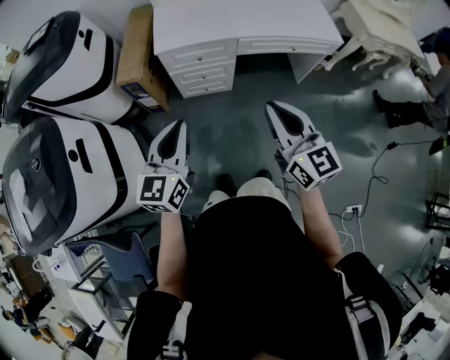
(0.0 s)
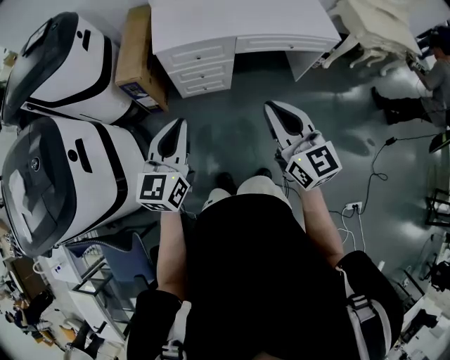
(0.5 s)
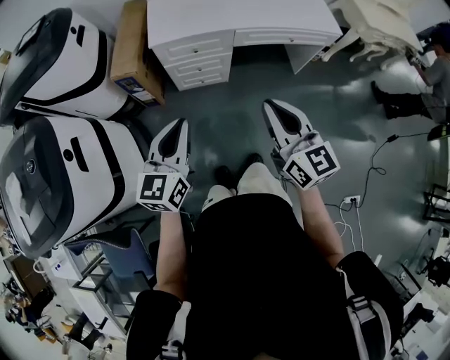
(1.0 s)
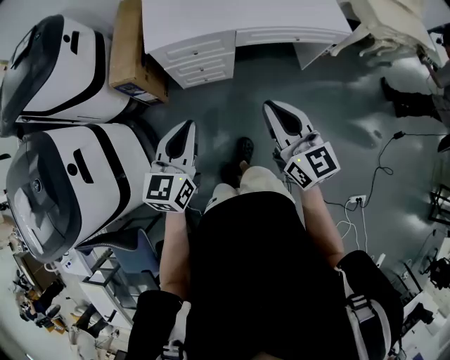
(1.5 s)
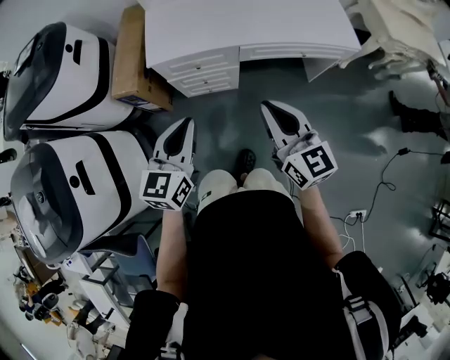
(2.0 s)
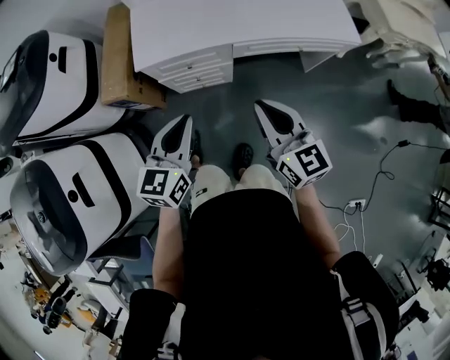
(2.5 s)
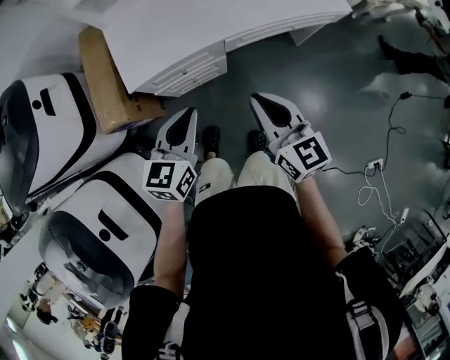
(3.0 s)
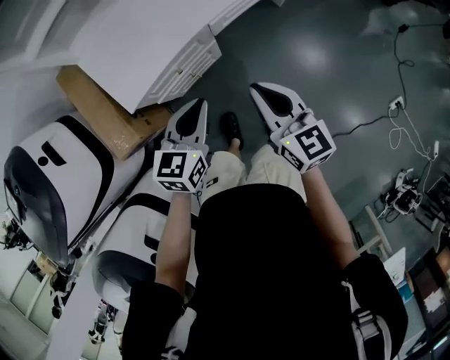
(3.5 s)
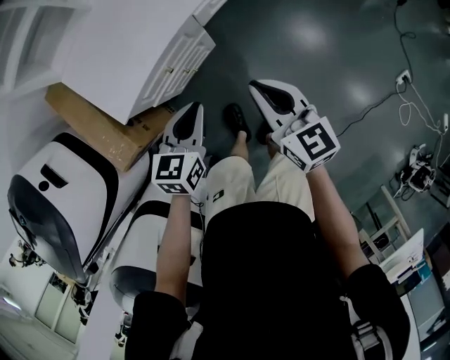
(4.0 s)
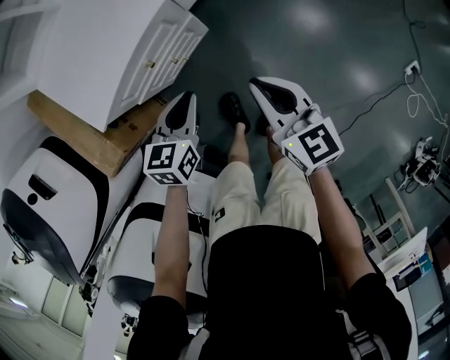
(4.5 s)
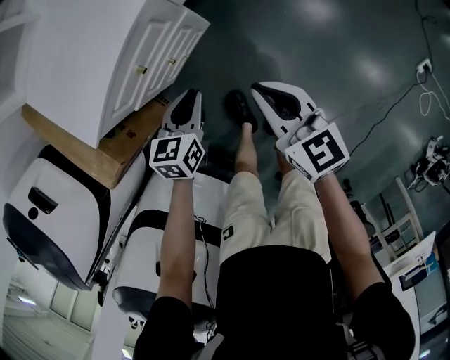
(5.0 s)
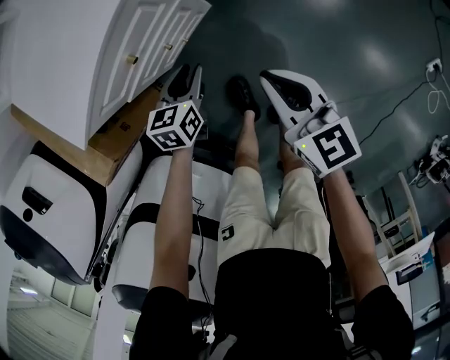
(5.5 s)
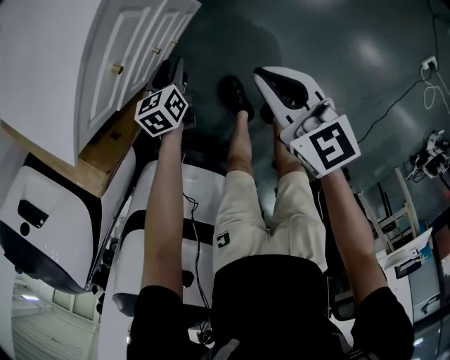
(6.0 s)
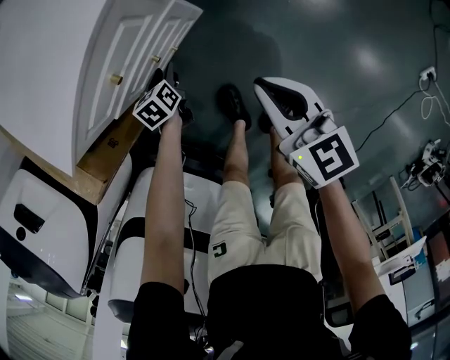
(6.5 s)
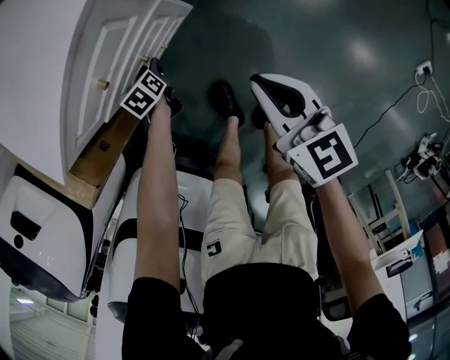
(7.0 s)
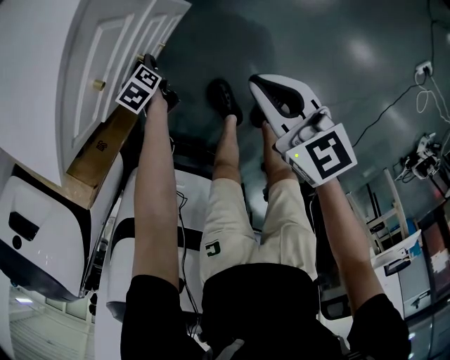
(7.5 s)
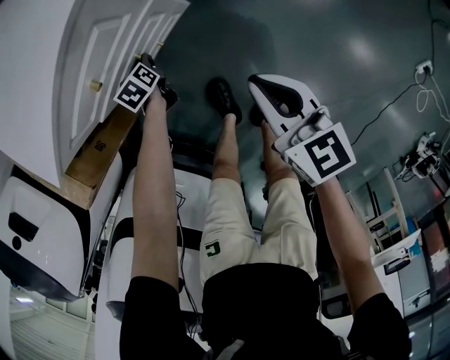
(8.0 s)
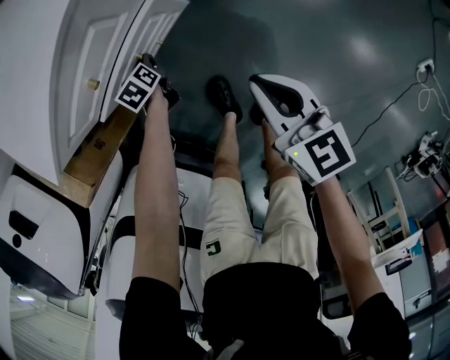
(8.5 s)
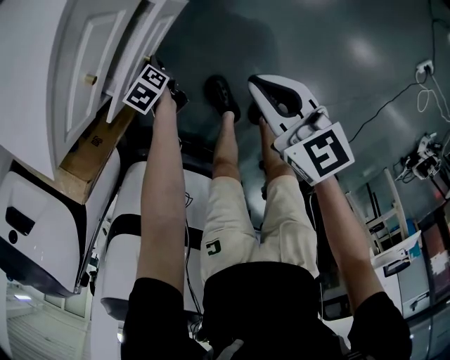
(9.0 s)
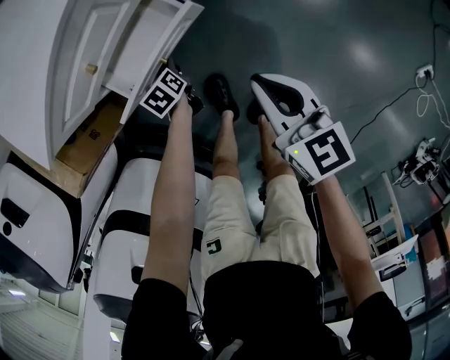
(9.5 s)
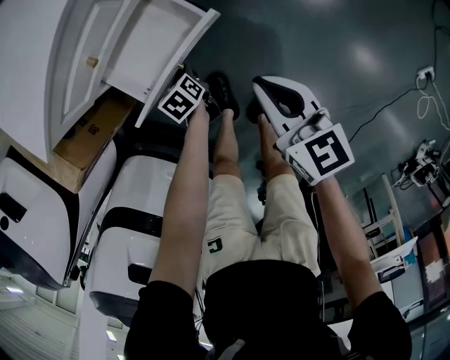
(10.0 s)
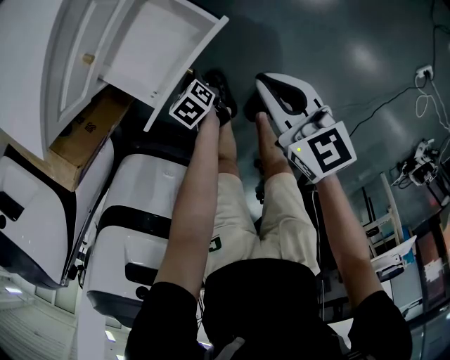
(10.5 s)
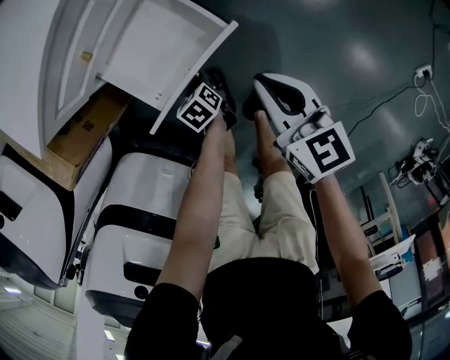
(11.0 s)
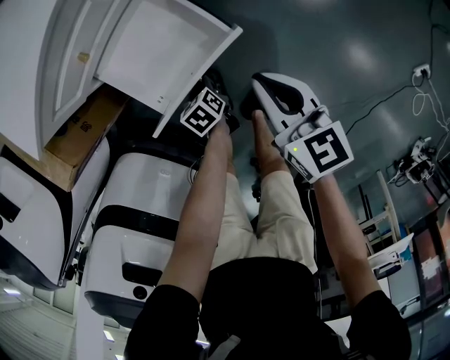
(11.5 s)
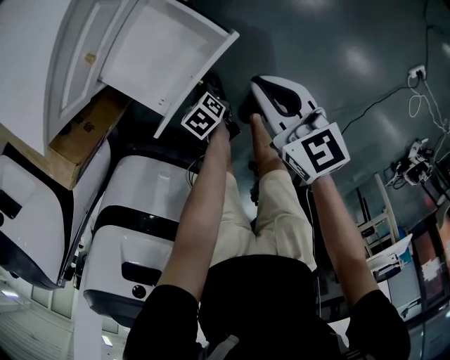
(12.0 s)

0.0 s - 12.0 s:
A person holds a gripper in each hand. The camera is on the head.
0.0 s - 2.0 s: The right gripper shifts some 15 cm forward; the left gripper moves forward and to the right, about 15 cm.
2.0 s - 4.0 s: The grippers both shift downward by roughly 20 cm. The right gripper changes its angle by some 40 degrees. Meanwhile the left gripper rotates approximately 40 degrees.
4.0 s - 6.0 s: The left gripper shifts roughly 35 cm downward, changes its angle by approximately 20 degrees, and opens its fingers; the right gripper is displaced downward by roughly 25 cm.
6.0 s - 8.0 s: The left gripper goes about 15 cm downward, forward and to the left, and rotates approximately 30 degrees.
8.0 s - 10.0 s: The left gripper shifts approximately 15 cm backward, while the right gripper shifts some 5 cm backward.
10.0 s - 12.0 s: The left gripper goes some 10 cm backward.

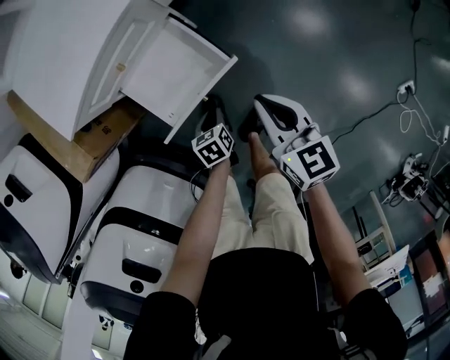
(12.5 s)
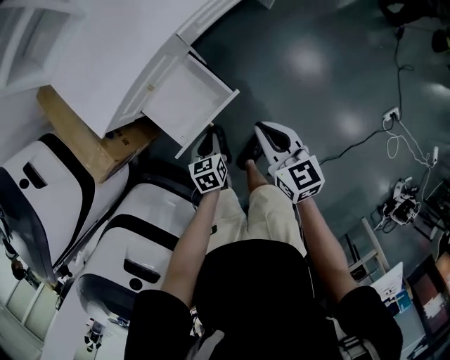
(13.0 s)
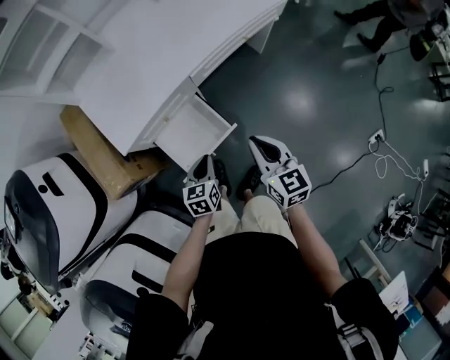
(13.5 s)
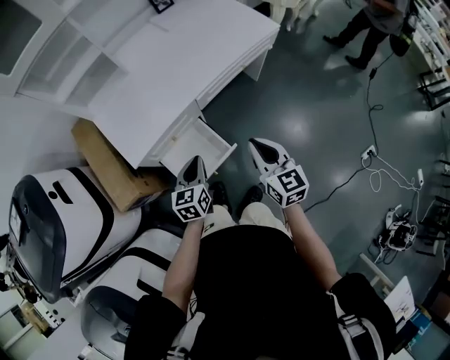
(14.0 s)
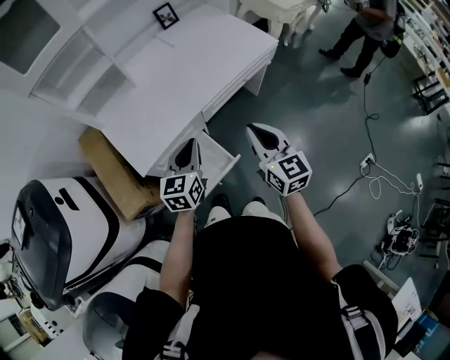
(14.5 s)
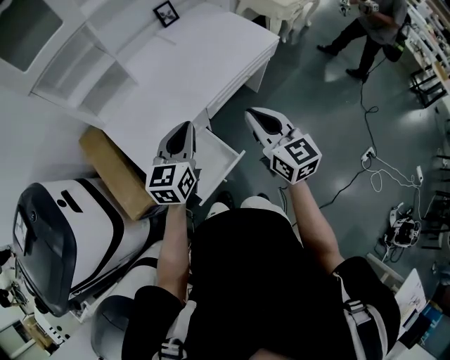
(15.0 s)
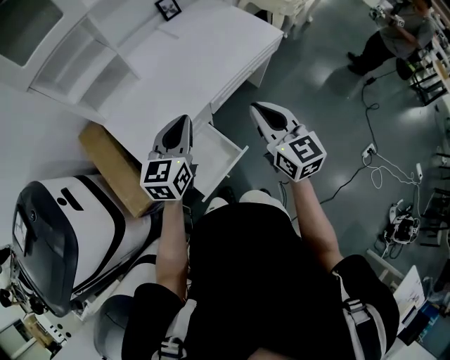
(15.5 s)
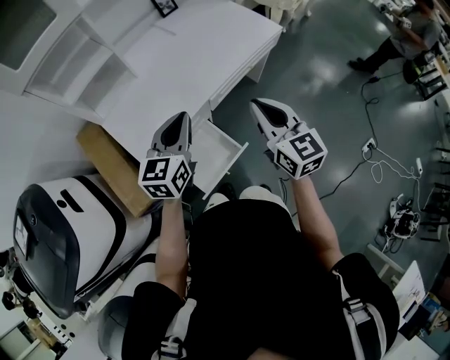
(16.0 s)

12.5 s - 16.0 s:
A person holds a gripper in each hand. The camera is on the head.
12.5 s - 14.5 s: Both grippers travel together upward, roughly 40 cm. The right gripper changes its angle by some 20 degrees. The left gripper points its fingers about 50 degrees further upward.
14.5 s - 16.0 s: The left gripper travels upward and to the left by approximately 10 cm, while the right gripper shifts by approximately 5 cm.

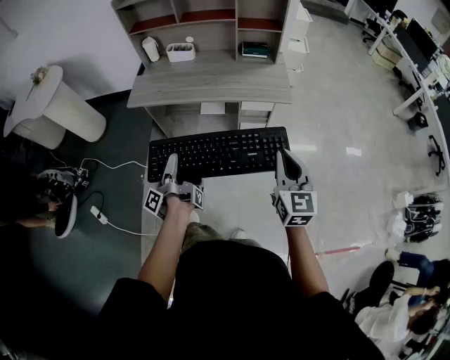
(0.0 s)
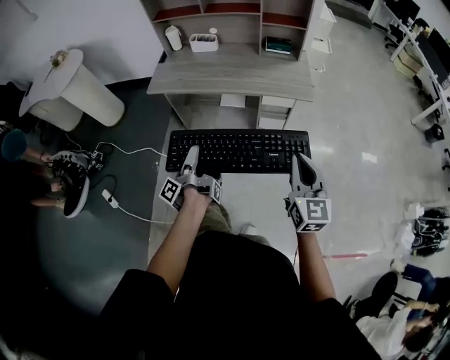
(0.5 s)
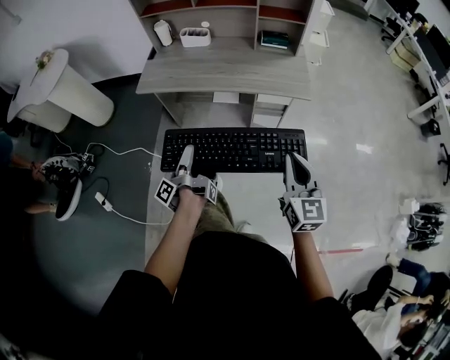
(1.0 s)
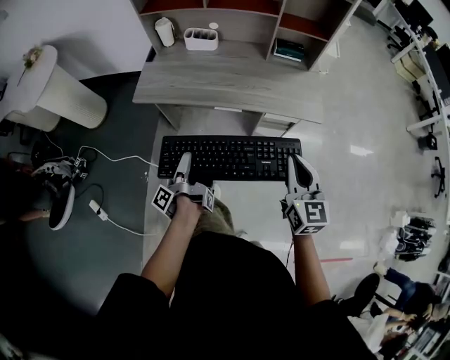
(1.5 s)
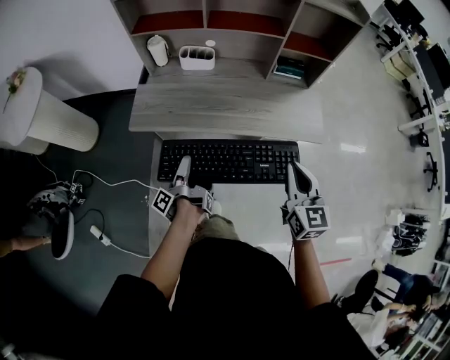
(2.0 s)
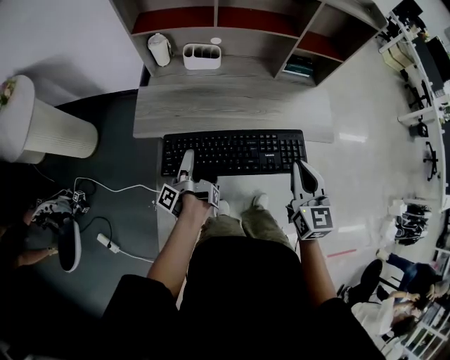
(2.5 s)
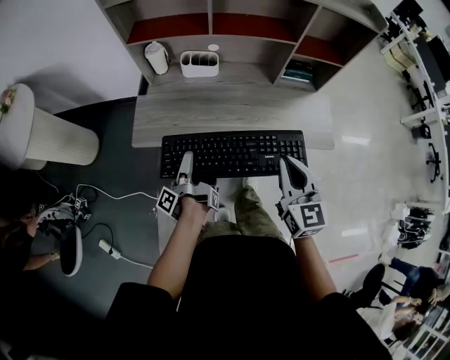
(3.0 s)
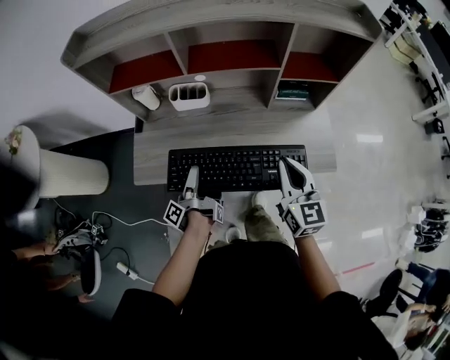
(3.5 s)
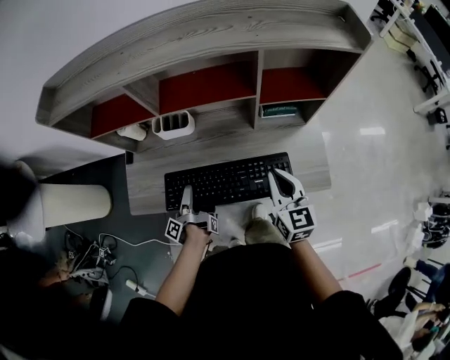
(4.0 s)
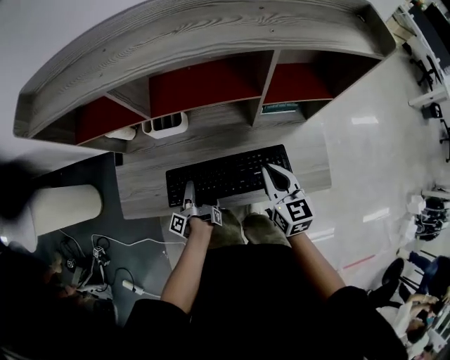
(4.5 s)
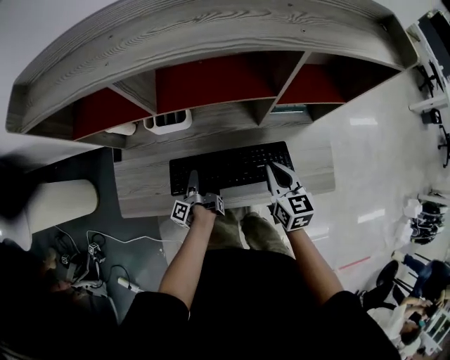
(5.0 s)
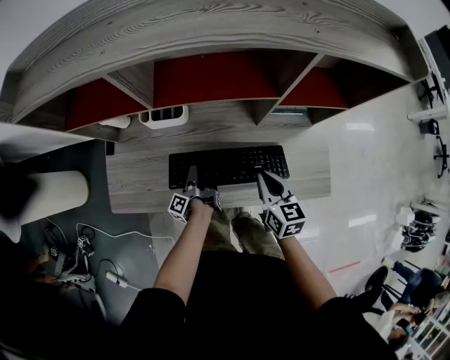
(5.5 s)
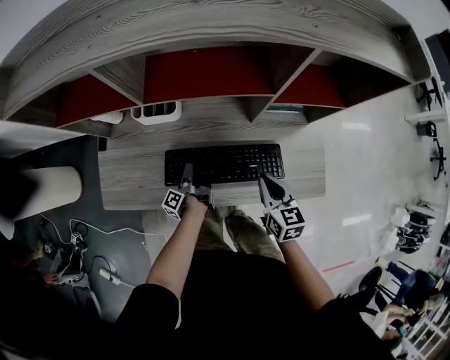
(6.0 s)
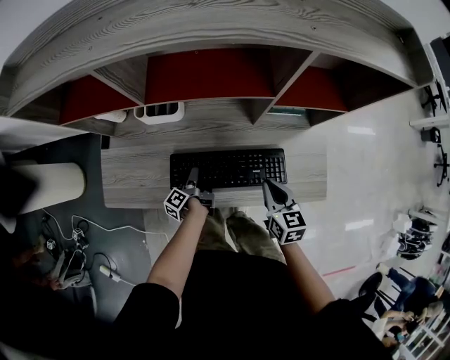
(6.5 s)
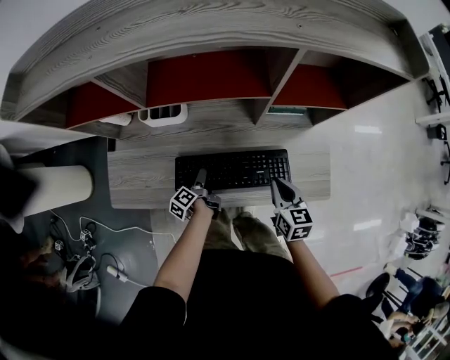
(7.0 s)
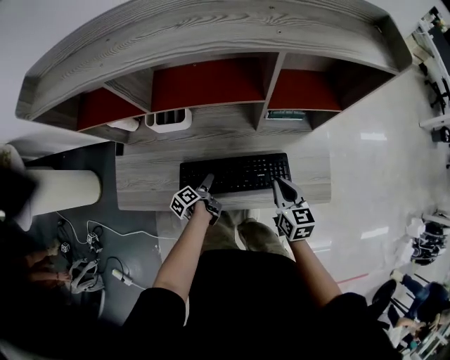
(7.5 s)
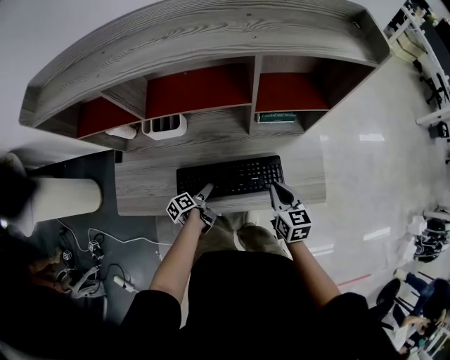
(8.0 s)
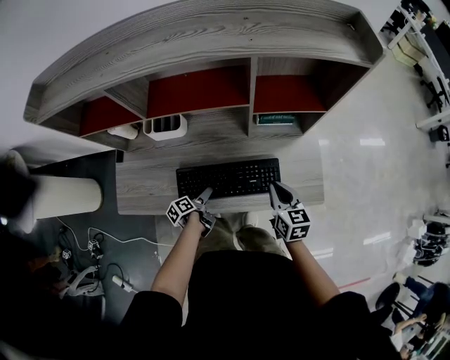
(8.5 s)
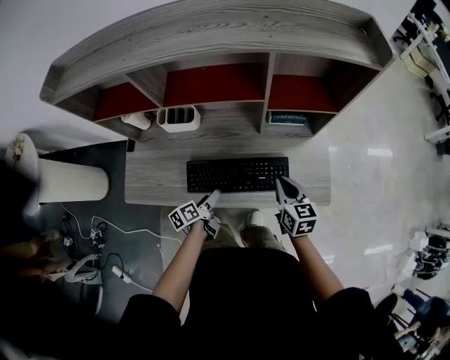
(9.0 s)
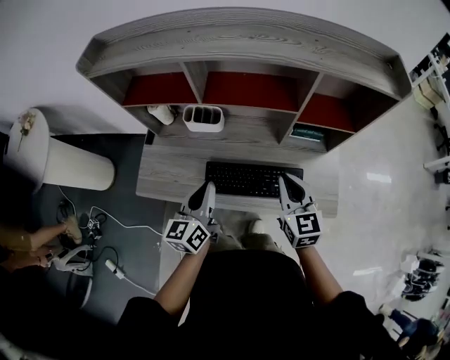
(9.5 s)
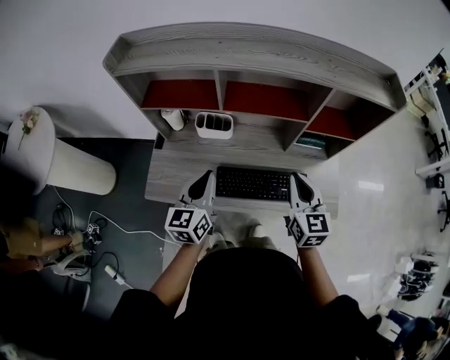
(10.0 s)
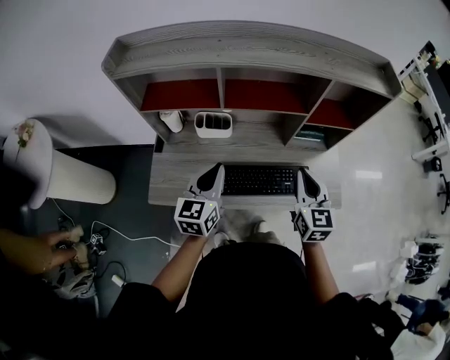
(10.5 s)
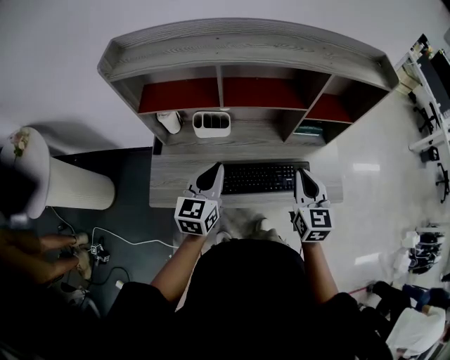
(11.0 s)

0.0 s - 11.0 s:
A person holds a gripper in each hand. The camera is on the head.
0.0 s - 2.0 s: The right gripper ends up about 30 cm from where it was.
2.0 s - 3.5 s: The right gripper shifts by approximately 20 cm.
3.5 s - 5.5 s: The right gripper heads downward, covering about 15 cm, and rotates some 20 degrees.
5.5 s - 7.5 s: The right gripper changes place by some 10 cm.
9.0 s - 11.0 s: The right gripper goes roughly 20 cm upward, and swivels approximately 20 degrees.
